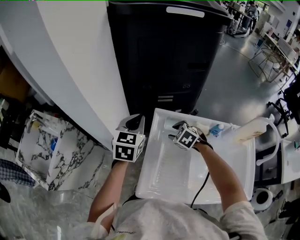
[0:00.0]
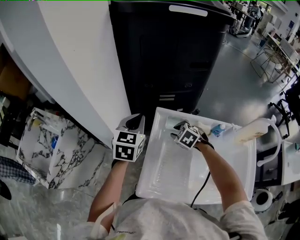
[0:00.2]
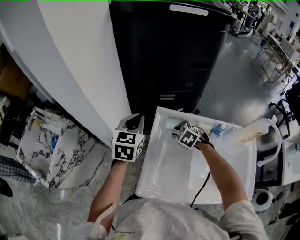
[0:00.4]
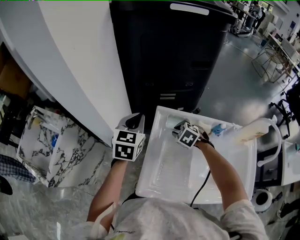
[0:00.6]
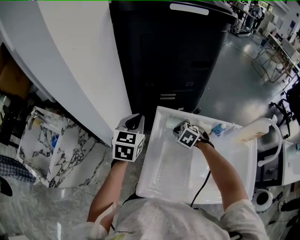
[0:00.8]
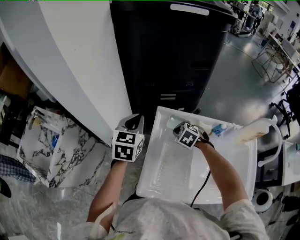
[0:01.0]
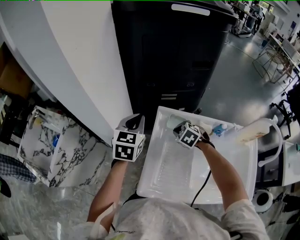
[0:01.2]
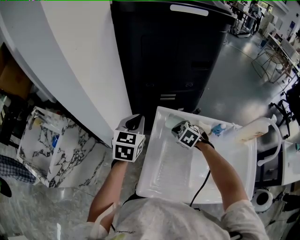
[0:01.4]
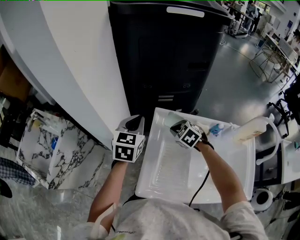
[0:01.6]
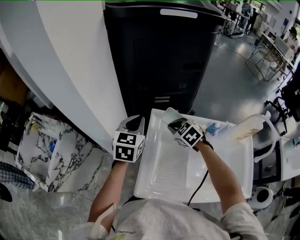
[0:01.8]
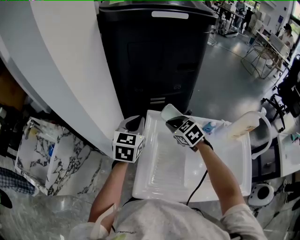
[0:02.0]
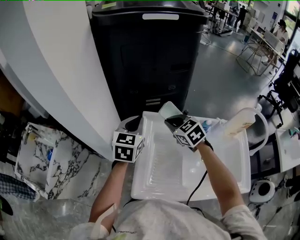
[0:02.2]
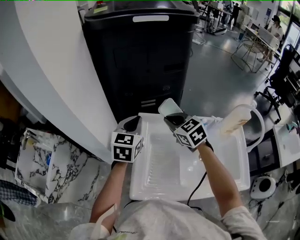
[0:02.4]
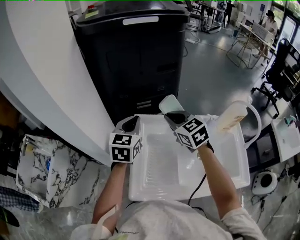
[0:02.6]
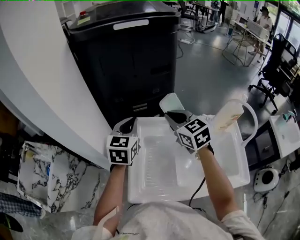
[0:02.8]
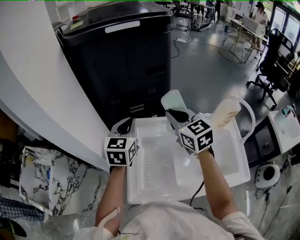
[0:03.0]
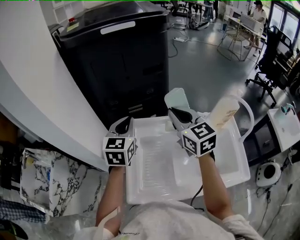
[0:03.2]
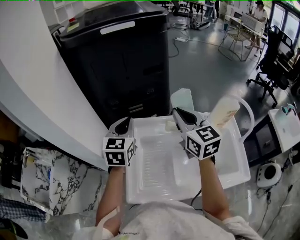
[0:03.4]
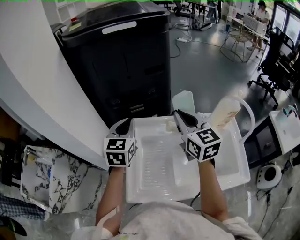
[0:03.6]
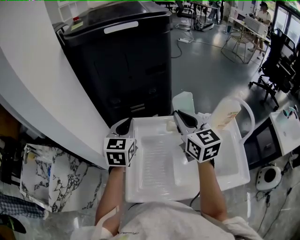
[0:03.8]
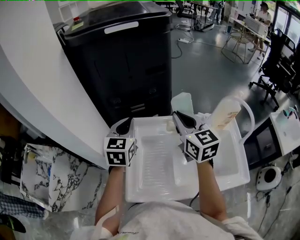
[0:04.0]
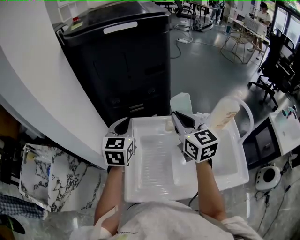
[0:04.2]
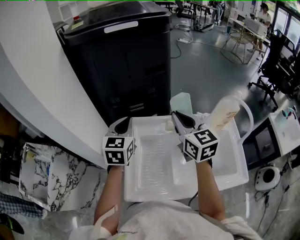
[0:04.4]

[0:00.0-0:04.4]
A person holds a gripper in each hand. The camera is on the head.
0.0 to 1.4 s: The right gripper closes its fingers.
1.4 to 3.0 s: The left gripper is displaced to the right and upward by about 15 cm, while the right gripper heads upward, covering roughly 25 cm, and tips its fingers upward by roughly 50 degrees.
3.0 to 4.4 s: The grippers make only small movements.

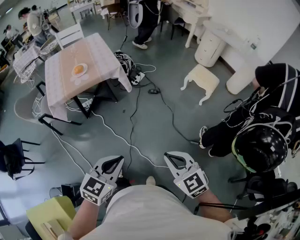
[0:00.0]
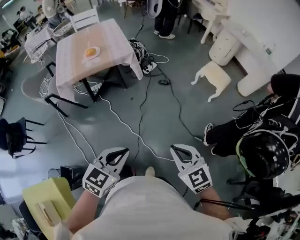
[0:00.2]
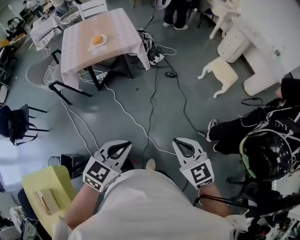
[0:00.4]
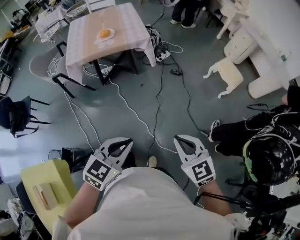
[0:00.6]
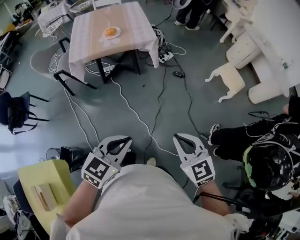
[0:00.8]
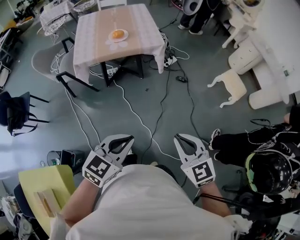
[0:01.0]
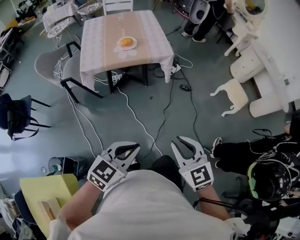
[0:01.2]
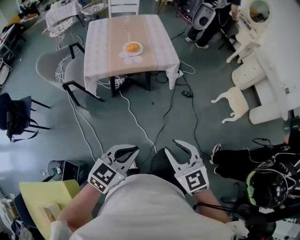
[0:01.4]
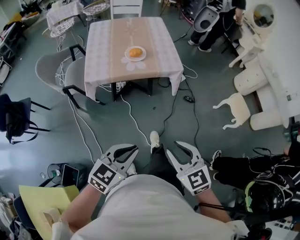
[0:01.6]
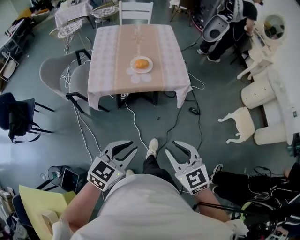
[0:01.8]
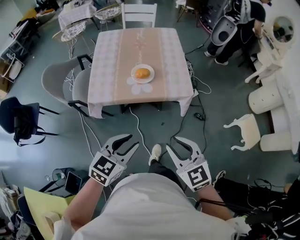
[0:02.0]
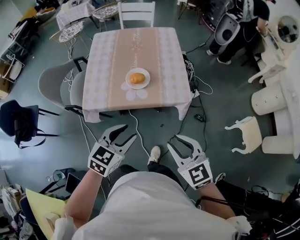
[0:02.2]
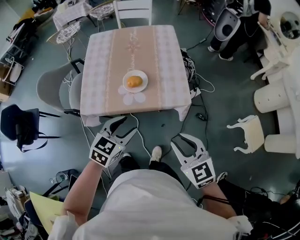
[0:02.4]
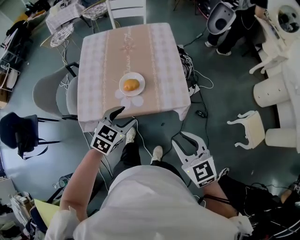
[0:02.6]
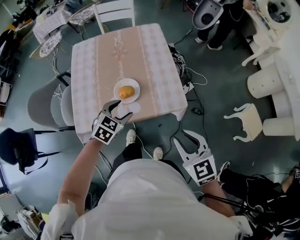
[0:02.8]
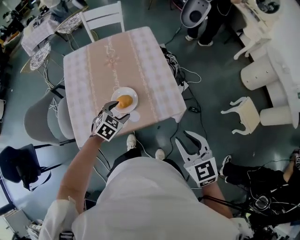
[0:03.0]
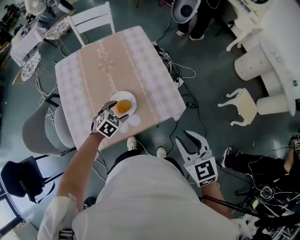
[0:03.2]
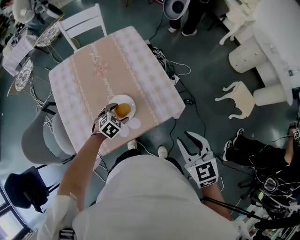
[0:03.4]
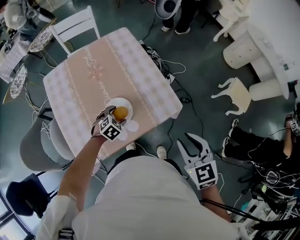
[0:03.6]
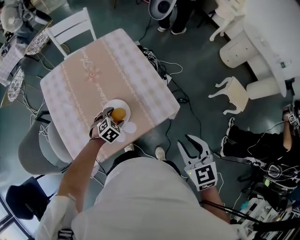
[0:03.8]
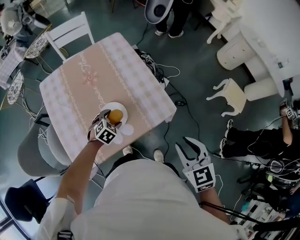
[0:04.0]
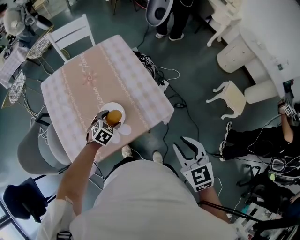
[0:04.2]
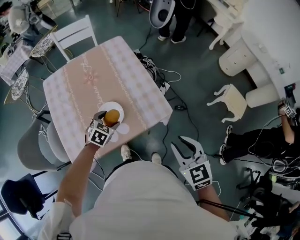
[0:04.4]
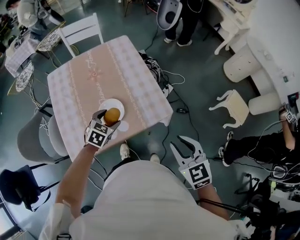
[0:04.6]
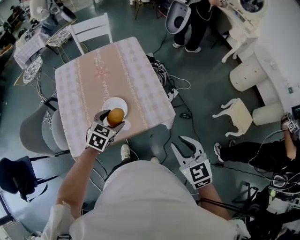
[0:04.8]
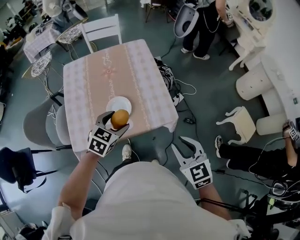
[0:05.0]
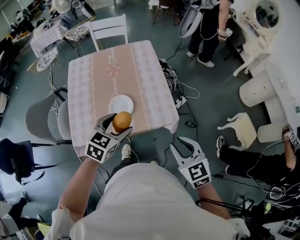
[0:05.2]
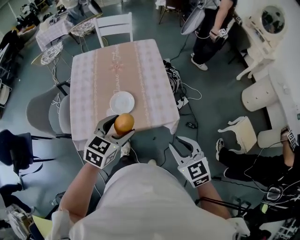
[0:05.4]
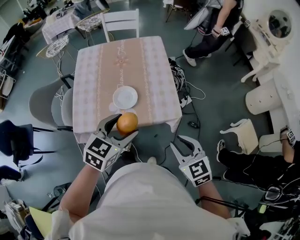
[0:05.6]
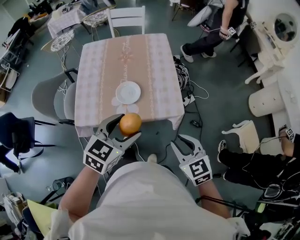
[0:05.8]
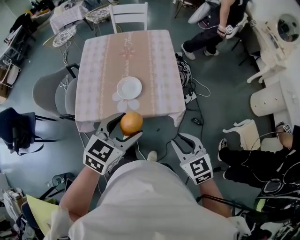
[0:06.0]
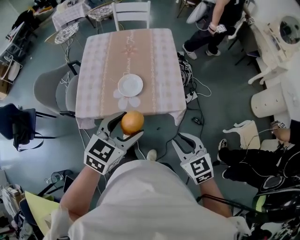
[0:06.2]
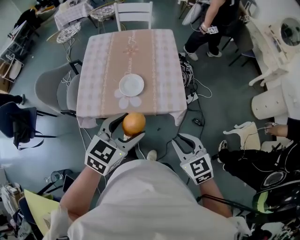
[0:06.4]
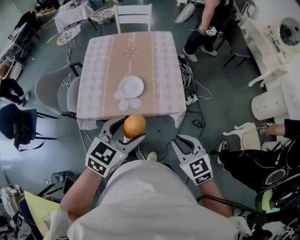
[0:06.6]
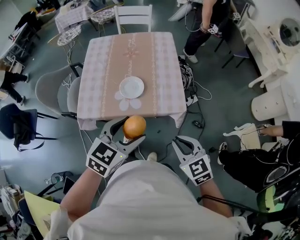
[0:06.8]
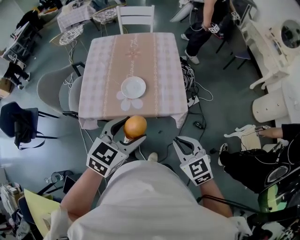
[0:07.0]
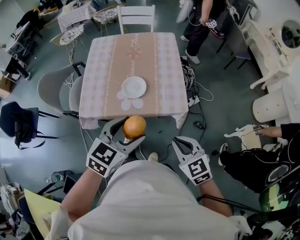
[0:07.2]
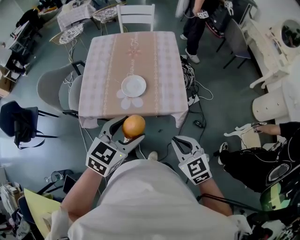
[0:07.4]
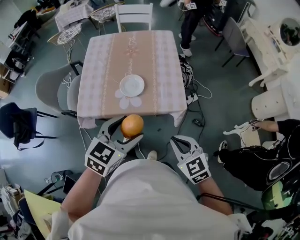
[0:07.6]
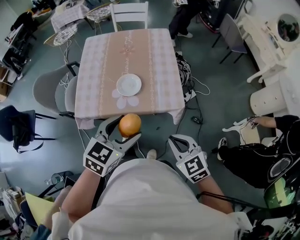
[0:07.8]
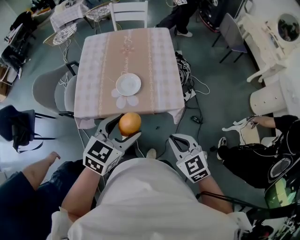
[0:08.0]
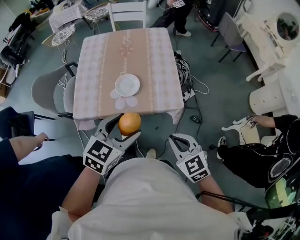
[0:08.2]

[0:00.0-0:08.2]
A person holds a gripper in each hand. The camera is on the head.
0.0 to 1.6 s: Both grippers move to the left and forward, roughly 30 cm. The right gripper opens.
1.6 to 3.2 s: Both grippers are carried forward, about 50 cm. The left gripper angles its fingers downward, by some 30 degrees, and opens.
3.2 to 5.0 s: The right gripper moves approximately 5 cm, while the left gripper moves upward and to the right, roughly 15 cm, and changes its angle by about 20 degrees.
5.0 to 6.6 s: The right gripper goes roughly 5 cm backward, while the left gripper heads backward and upward, covering approximately 20 cm.
6.6 to 8.2 s: The grippers move only a little.

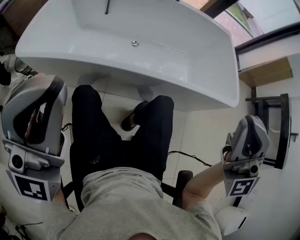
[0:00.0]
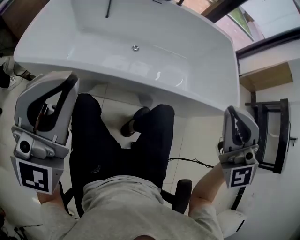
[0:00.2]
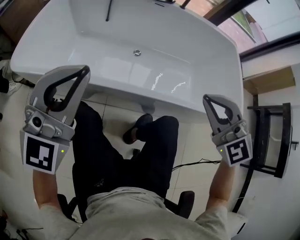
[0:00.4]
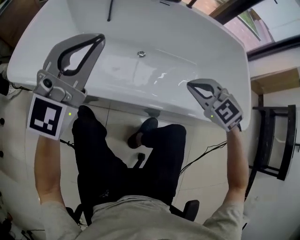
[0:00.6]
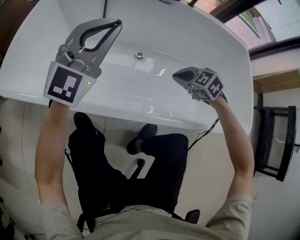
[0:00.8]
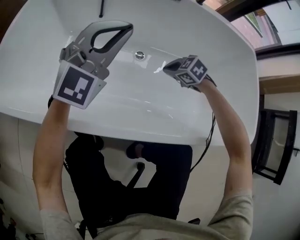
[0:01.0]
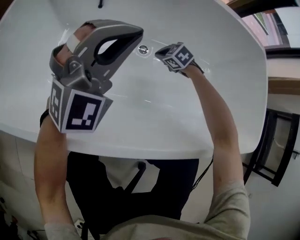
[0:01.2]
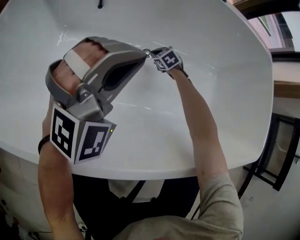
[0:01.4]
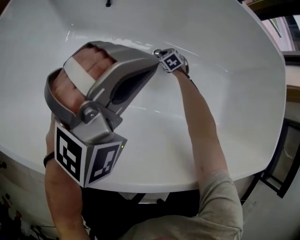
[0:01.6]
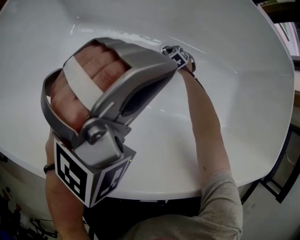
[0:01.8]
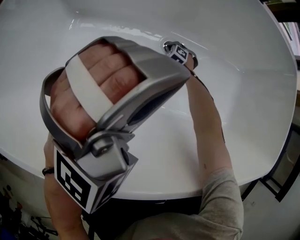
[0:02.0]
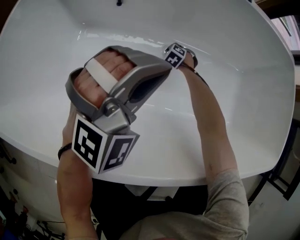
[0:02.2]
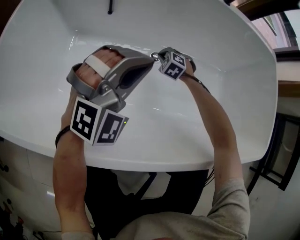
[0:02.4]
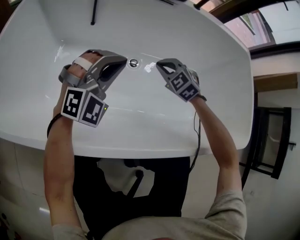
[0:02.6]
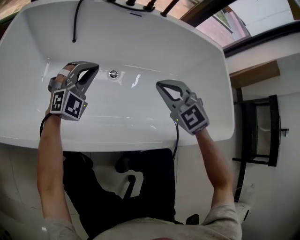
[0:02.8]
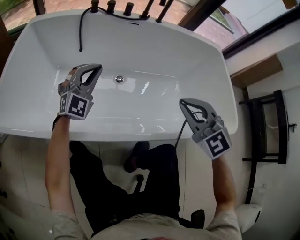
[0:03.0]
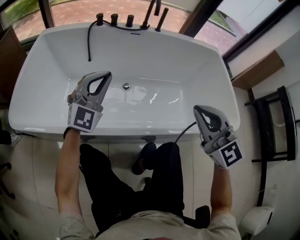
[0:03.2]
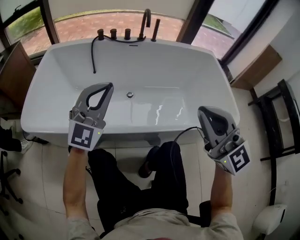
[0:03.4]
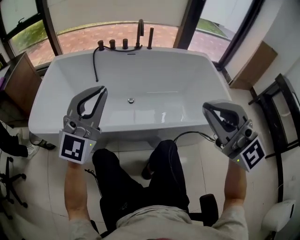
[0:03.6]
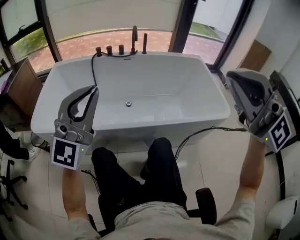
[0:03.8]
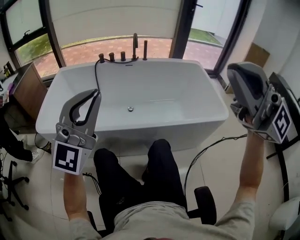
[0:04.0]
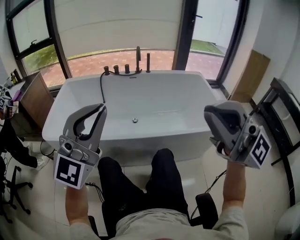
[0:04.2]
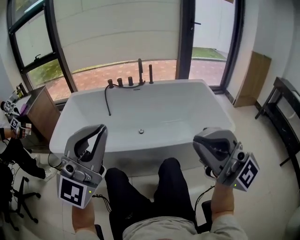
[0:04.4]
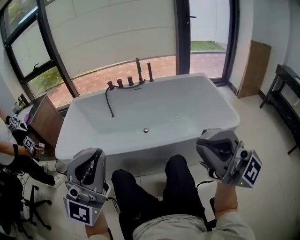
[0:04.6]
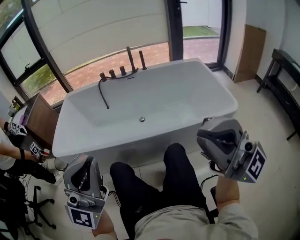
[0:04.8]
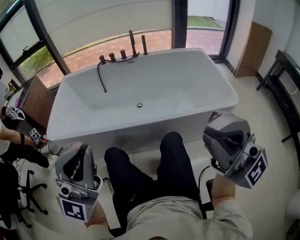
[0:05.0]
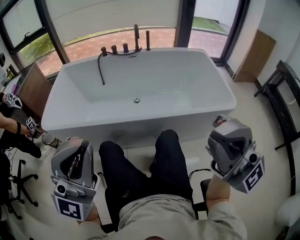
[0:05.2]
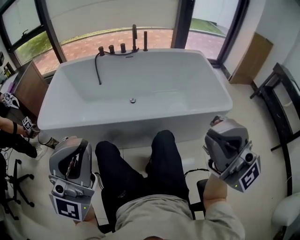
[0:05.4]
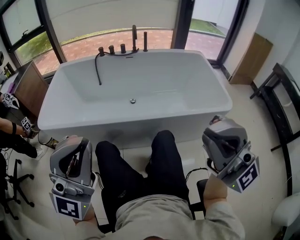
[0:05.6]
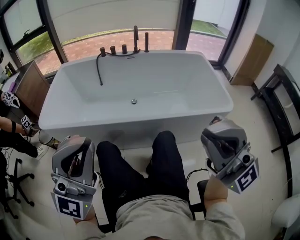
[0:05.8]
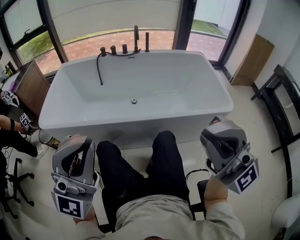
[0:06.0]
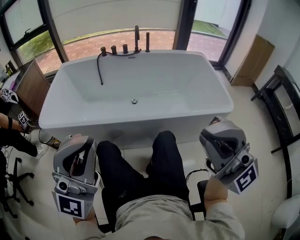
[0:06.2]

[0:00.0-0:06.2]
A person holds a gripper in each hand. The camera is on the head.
0.0 to 1.6 s: The pair of grippers is taken forward, approximately 60 cm. The left gripper goes some 35 cm downward, and points its fingers roughly 40 degrees further downward. The right gripper is displaced downward by approximately 80 cm, and tilts its fingers some 70 degrees downward.
1.6 to 3.2 s: The left gripper travels upward and backward by approximately 15 cm, and turns by roughly 30 degrees. Meanwhile the right gripper heads upward and backward, covering about 80 cm, and angles its fingers upward, by roughly 50 degrees.
3.2 to 4.6 s: The two grippers go some 40 cm backward and upward. The right gripper points its fingers roughly 40 degrees further upward; the left gripper rotates some 30 degrees.
4.6 to 6.2 s: The grippers stay close to where they were, moving slightly.

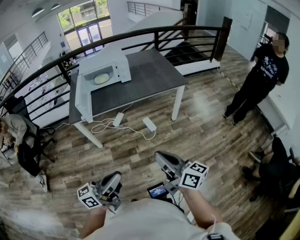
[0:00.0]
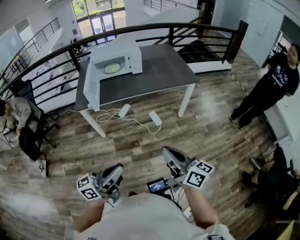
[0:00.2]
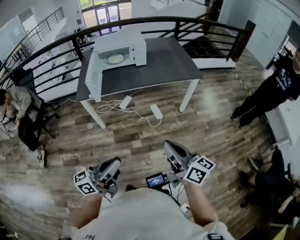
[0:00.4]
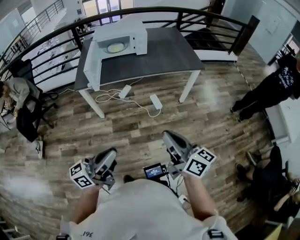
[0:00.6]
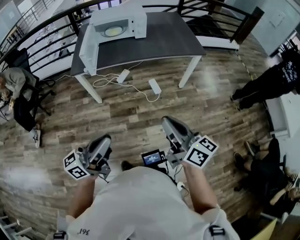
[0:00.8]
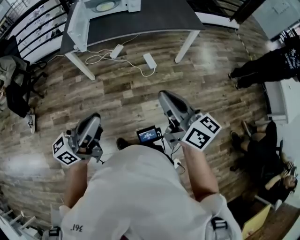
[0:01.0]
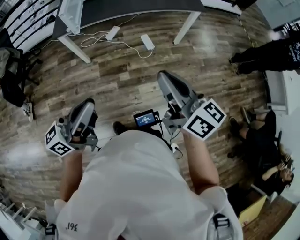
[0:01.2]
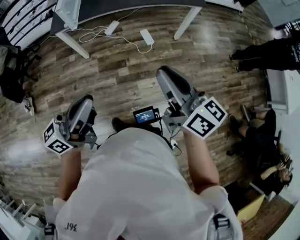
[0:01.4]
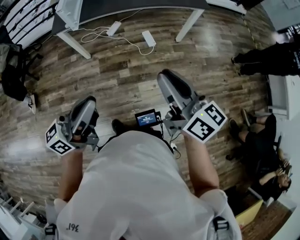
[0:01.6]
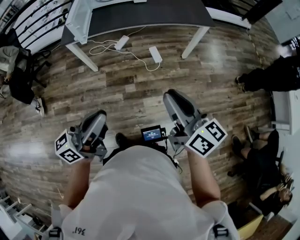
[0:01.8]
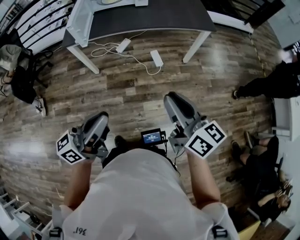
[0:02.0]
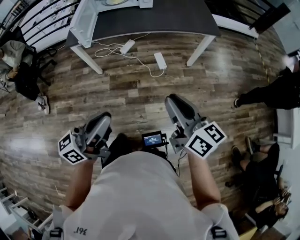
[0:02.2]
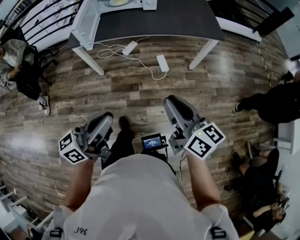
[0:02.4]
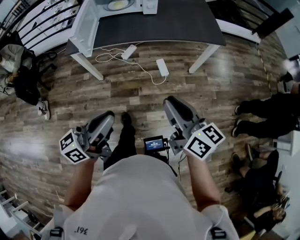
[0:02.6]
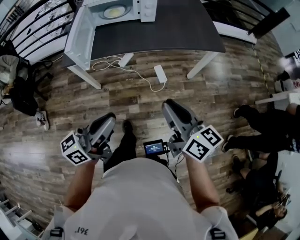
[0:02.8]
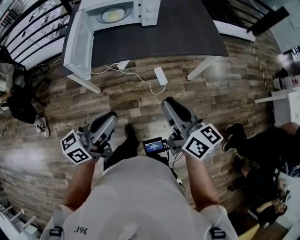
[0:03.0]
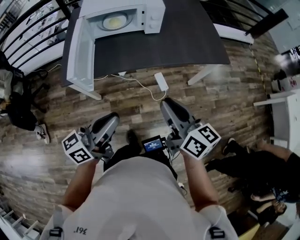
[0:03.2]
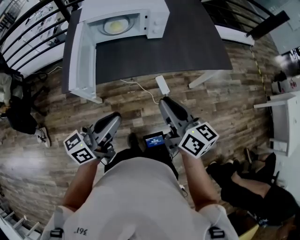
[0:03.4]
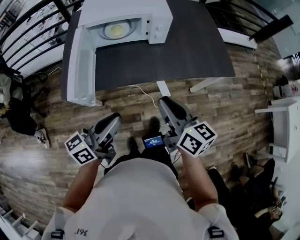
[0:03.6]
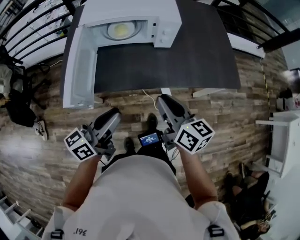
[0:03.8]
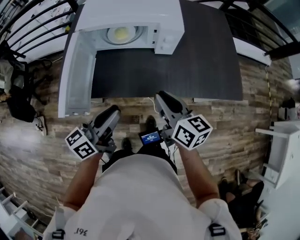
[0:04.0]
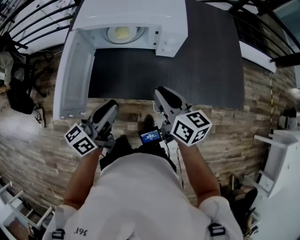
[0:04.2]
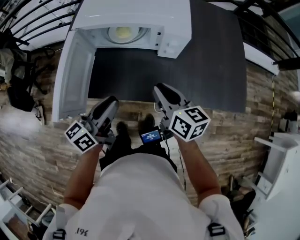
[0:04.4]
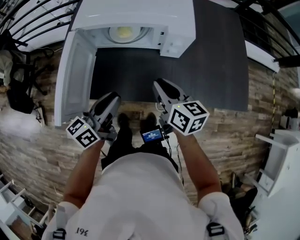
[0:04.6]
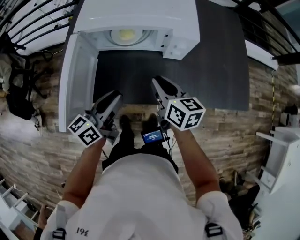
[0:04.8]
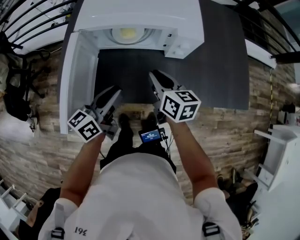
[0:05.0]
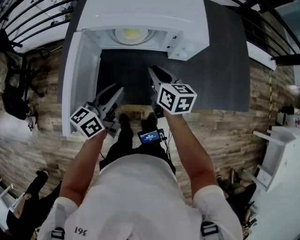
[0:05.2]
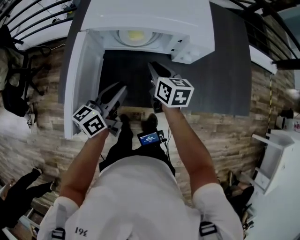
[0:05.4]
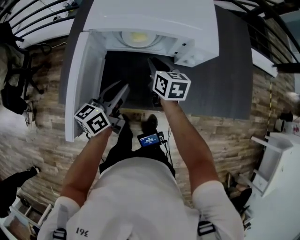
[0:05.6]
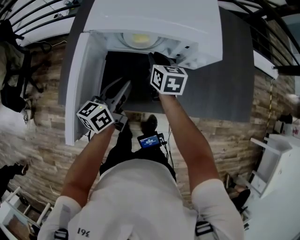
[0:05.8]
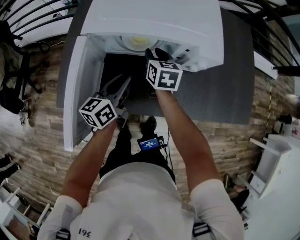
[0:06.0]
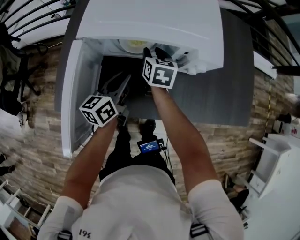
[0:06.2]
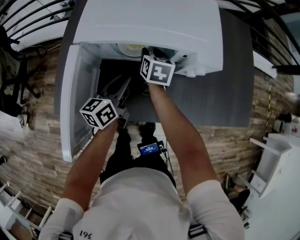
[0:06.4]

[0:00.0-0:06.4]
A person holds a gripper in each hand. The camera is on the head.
0.0 to 1.6 s: The right gripper moves about 5 cm.
1.6 to 3.2 s: The right gripper moves forward and to the left, about 35 cm. Meanwhile the left gripper goes roughly 35 cm forward.
3.2 to 4.8 s: Both grippers travel together forward, about 35 cm. The left gripper turns by some 20 degrees.
4.8 to 6.4 s: The right gripper goes approximately 25 cm forward, downward and to the left, changes its angle by about 20 degrees, and opens up. The left gripper moves forward and downward, roughly 15 cm.
